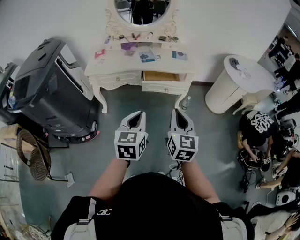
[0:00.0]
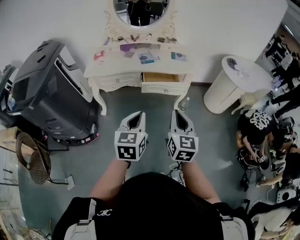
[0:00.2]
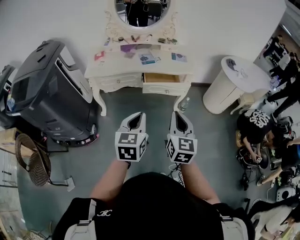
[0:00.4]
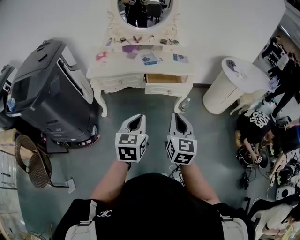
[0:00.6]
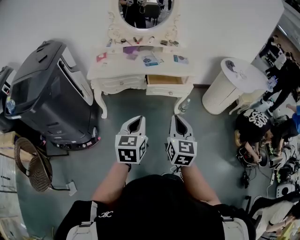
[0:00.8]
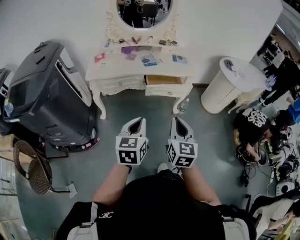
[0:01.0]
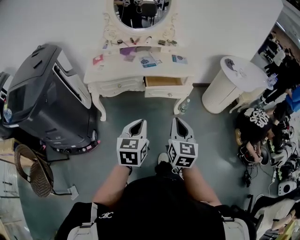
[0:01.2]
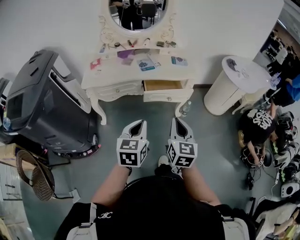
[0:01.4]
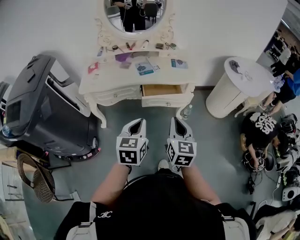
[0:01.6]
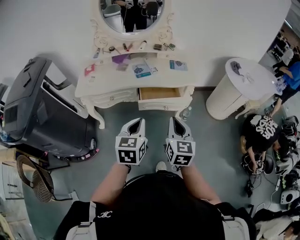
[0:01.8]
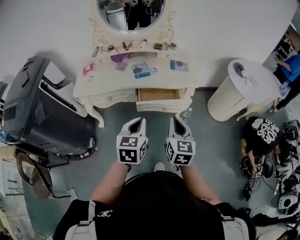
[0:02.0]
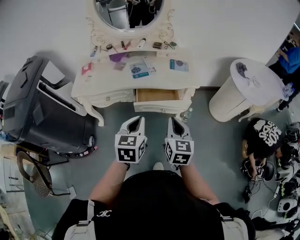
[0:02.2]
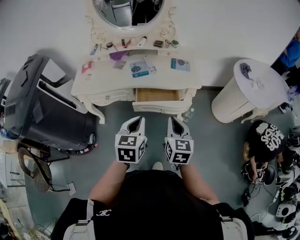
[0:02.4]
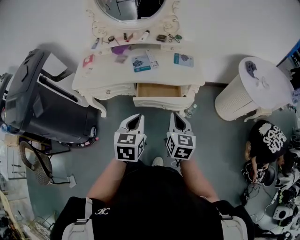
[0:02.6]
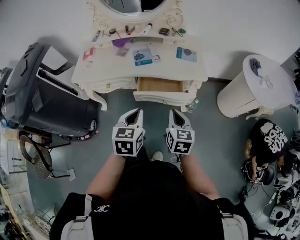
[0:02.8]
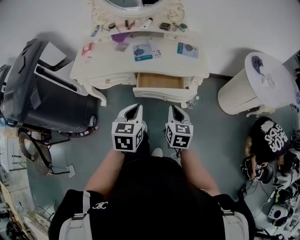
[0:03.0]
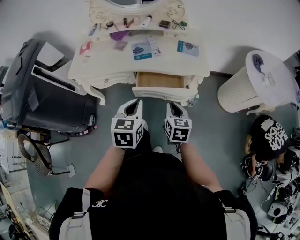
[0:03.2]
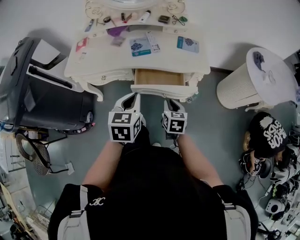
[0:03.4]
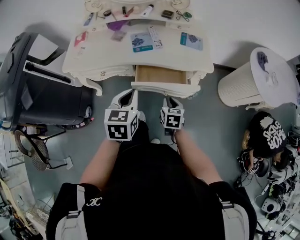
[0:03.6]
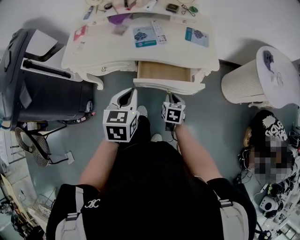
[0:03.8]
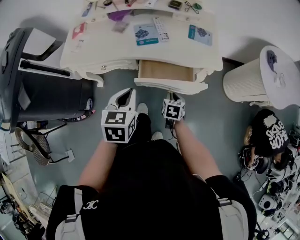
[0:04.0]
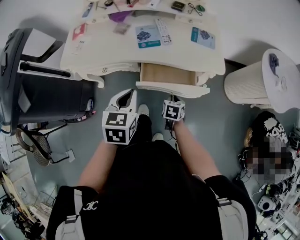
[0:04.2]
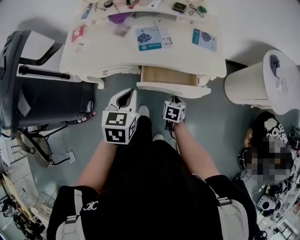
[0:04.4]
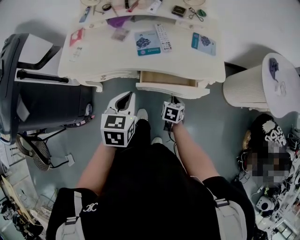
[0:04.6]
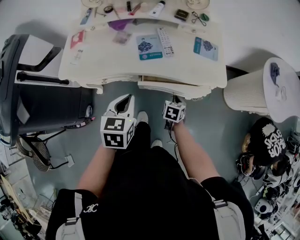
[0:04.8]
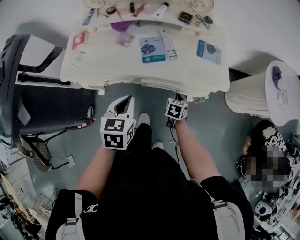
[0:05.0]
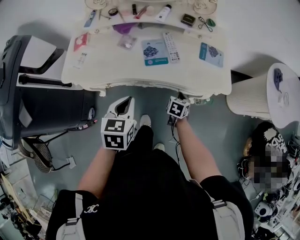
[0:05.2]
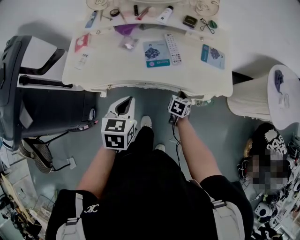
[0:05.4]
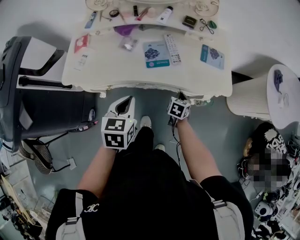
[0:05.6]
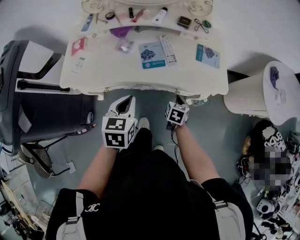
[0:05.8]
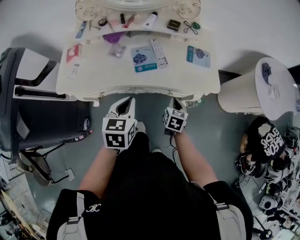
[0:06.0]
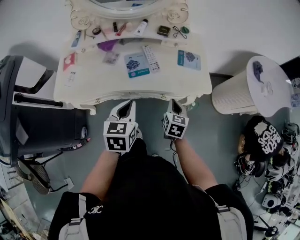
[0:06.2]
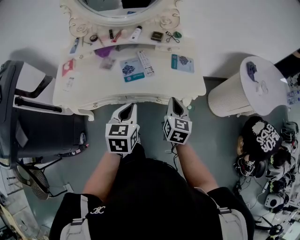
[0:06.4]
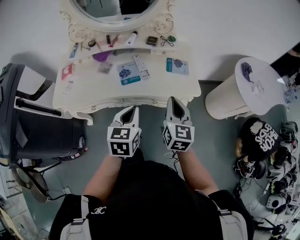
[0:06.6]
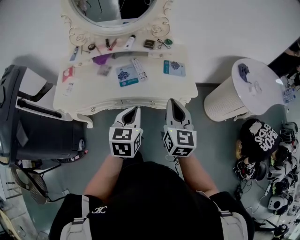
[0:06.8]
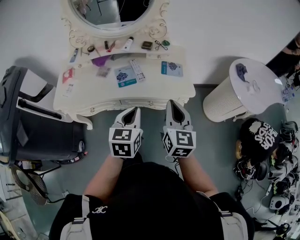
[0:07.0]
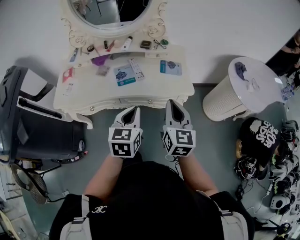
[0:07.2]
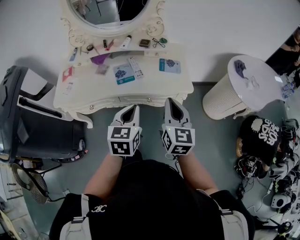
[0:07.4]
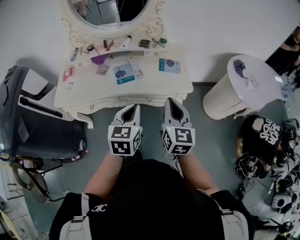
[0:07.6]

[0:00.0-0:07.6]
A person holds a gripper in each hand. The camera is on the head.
0.0 to 1.6 s: The two grippers go roughly 10 cm forward.
1.6 to 3.0 s: The left gripper moves forward and to the right, approximately 15 cm. The right gripper goes some 20 cm forward, downward and to the right, and rotates roughly 20 degrees.
3.0 to 4.6 s: The left gripper heads forward and to the left, covering some 15 cm, while the right gripper heads downward and forward, covering some 25 cm, and turns by roughly 30 degrees.
4.6 to 6.0 s: The right gripper is displaced upward and forward by roughly 10 cm, while the left gripper moves about 5 cm.
6.0 to 7.6 s: The left gripper moves to the right, upward and backward, approximately 15 cm. The right gripper is displaced upward by roughly 30 cm, and tips its fingers upward by about 30 degrees.

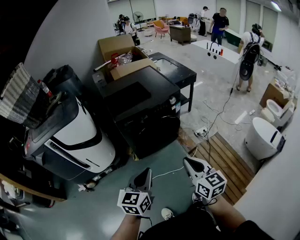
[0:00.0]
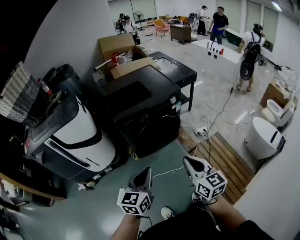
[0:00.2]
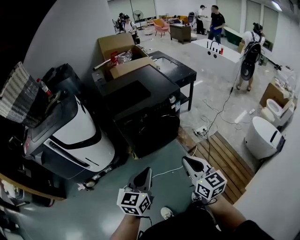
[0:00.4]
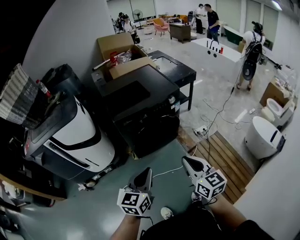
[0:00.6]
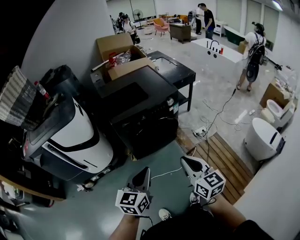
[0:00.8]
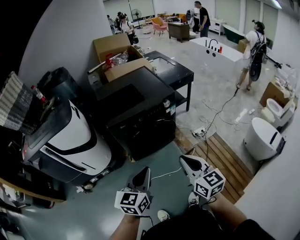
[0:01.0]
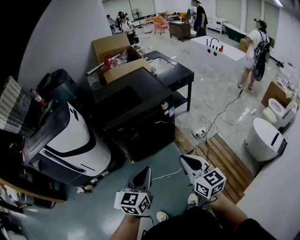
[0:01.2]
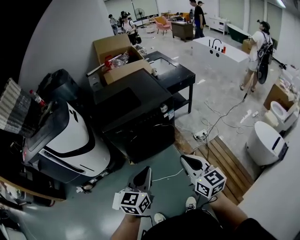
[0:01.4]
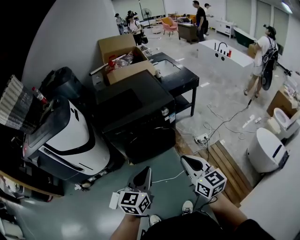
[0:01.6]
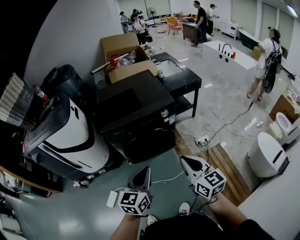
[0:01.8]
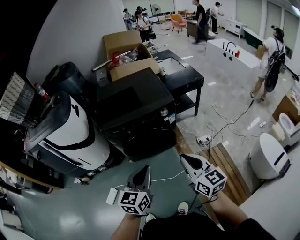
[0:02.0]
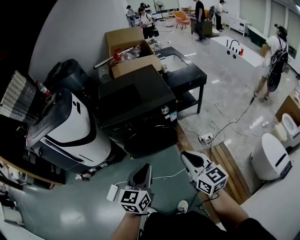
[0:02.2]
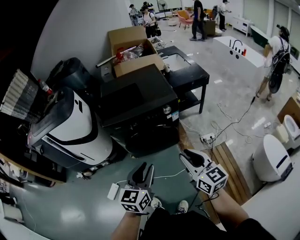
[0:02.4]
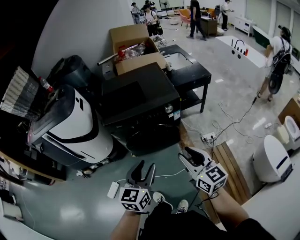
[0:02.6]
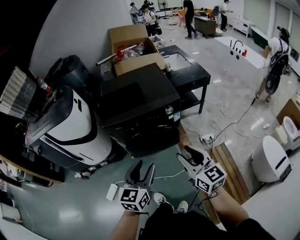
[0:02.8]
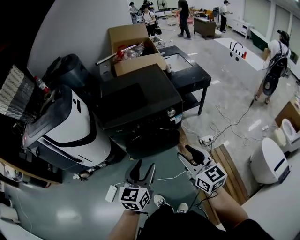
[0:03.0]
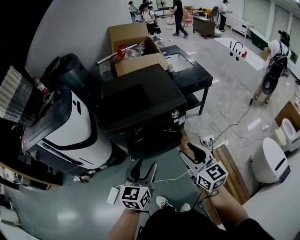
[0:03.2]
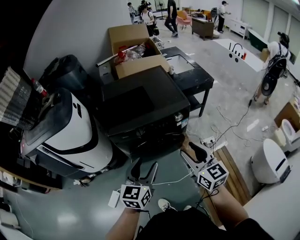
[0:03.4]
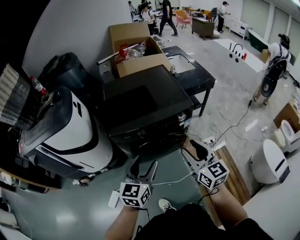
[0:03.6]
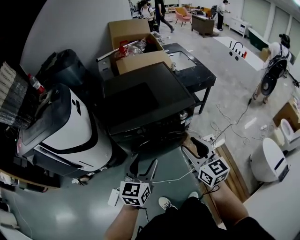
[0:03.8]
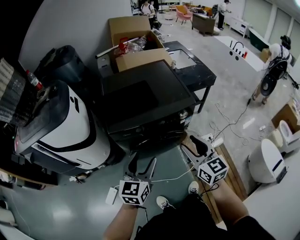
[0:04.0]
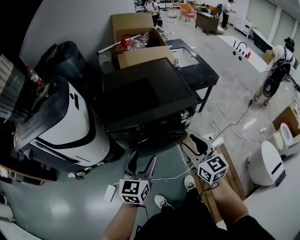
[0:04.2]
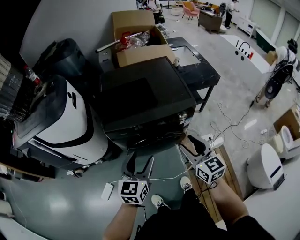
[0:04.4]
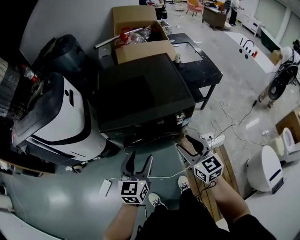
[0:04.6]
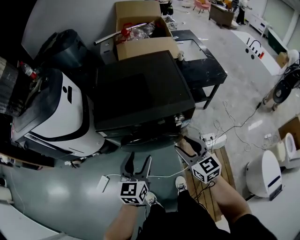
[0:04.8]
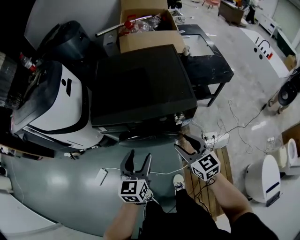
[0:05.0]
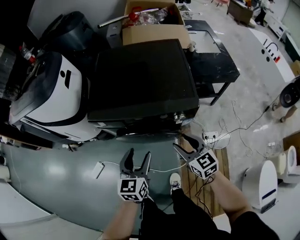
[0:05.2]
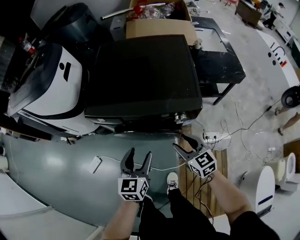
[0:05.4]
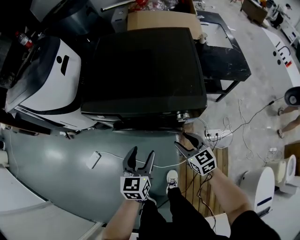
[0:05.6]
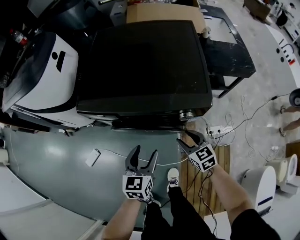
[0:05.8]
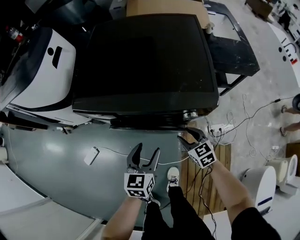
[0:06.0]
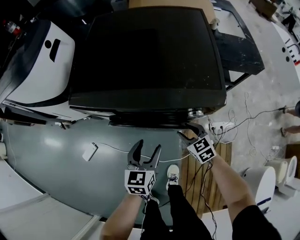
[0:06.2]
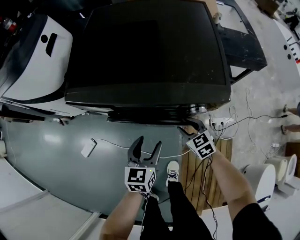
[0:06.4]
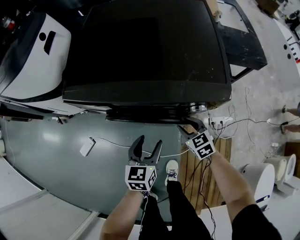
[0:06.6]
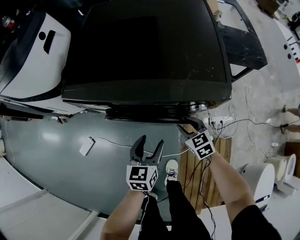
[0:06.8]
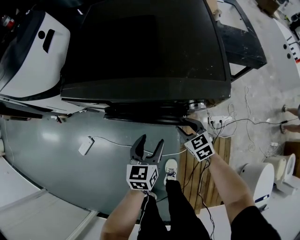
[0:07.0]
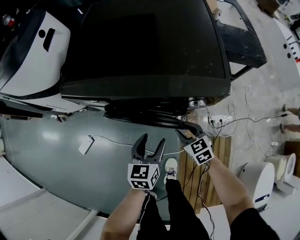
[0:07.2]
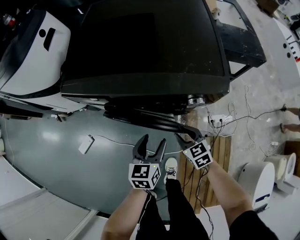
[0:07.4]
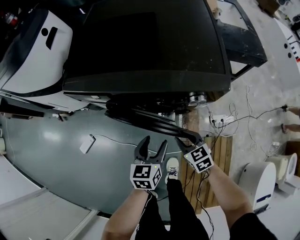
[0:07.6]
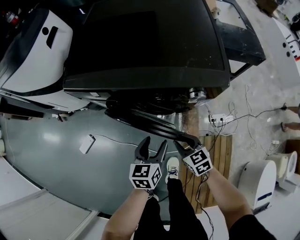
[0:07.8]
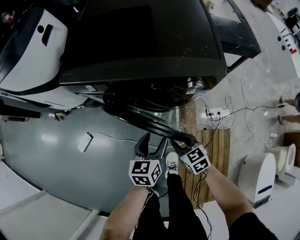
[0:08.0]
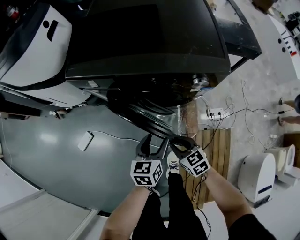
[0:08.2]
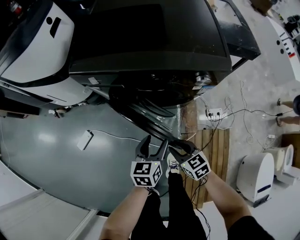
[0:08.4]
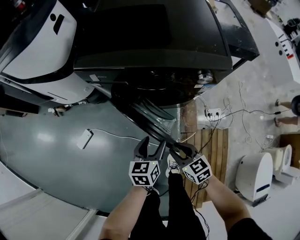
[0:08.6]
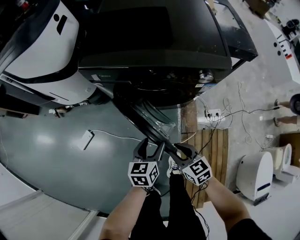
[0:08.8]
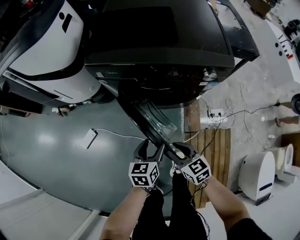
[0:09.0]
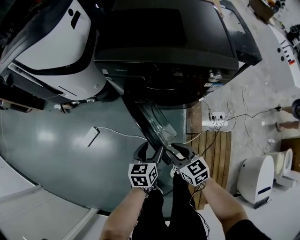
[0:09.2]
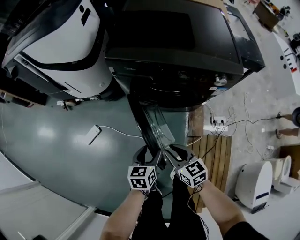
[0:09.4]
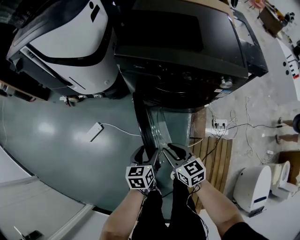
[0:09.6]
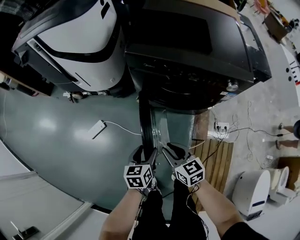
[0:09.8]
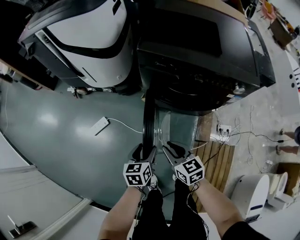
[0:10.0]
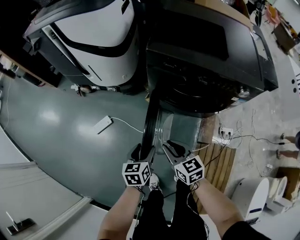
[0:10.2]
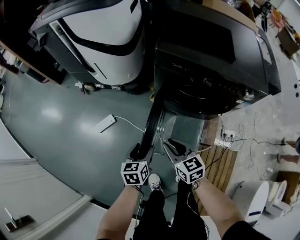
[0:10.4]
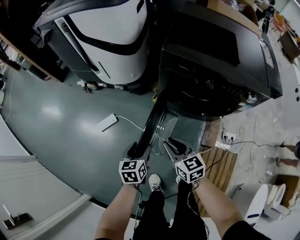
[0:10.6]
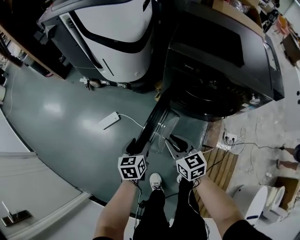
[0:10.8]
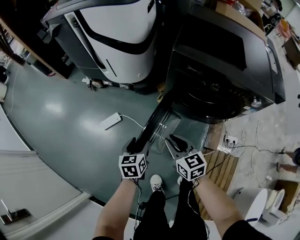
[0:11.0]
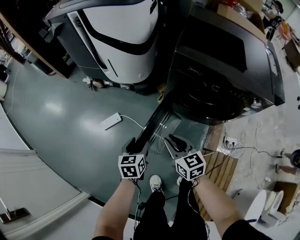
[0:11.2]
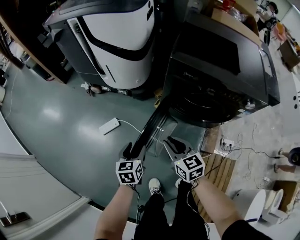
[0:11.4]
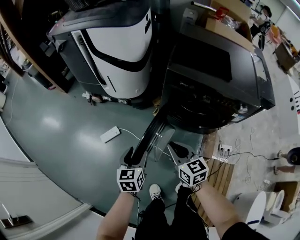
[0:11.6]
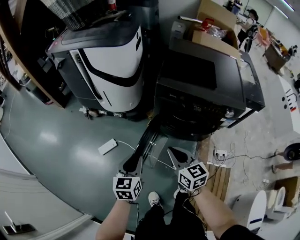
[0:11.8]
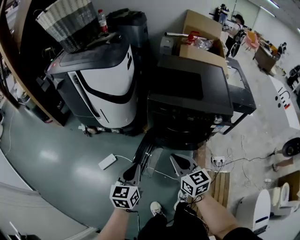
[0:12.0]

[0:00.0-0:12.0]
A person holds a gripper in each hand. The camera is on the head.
0.0 to 1.6 s: The grippers both shift to the right and forward by some 15 cm.
1.6 to 3.0 s: Both grippers travel together forward, about 10 cm. The right gripper opens up; the left gripper opens its fingers.
3.0 to 4.4 s: The left gripper heads forward and to the left, covering approximately 15 cm. Meanwhile the right gripper travels forward by about 15 cm.
4.4 to 6.0 s: The left gripper moves downward and to the right, some 25 cm, and rotates about 20 degrees; the right gripper shifts approximately 35 cm downward and forward, and turns by approximately 40 degrees.
6.0 to 7.6 s: The right gripper travels backward and downward by about 10 cm; the left gripper is displaced downward by roughly 10 cm.
7.6 to 9.0 s: Both grippers move to the left and backward, some 15 cm.
9.0 to 10.4 s: Both grippers travel together to the left, roughly 20 cm.
10.4 to 12.0 s: The two grippers go roughly 25 cm upward. The left gripper rotates approximately 20 degrees, and closes its fingers.

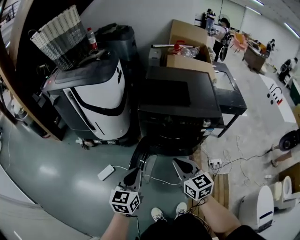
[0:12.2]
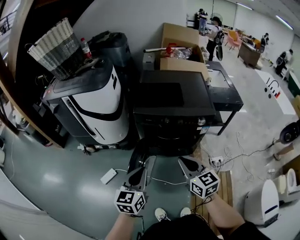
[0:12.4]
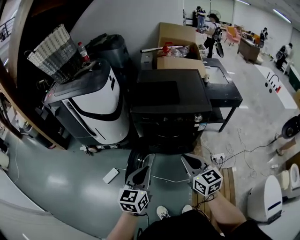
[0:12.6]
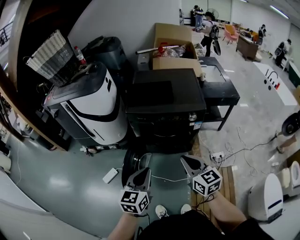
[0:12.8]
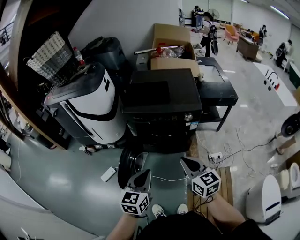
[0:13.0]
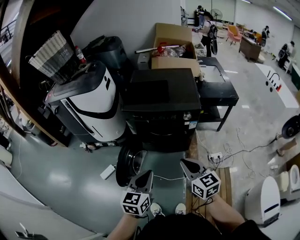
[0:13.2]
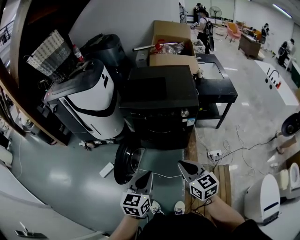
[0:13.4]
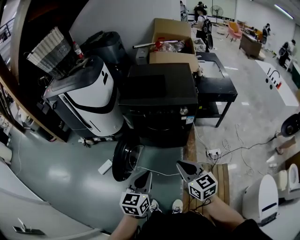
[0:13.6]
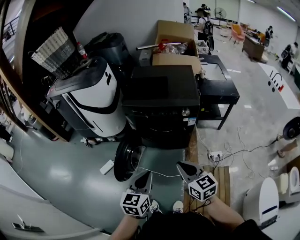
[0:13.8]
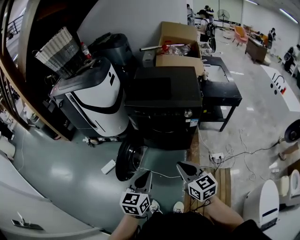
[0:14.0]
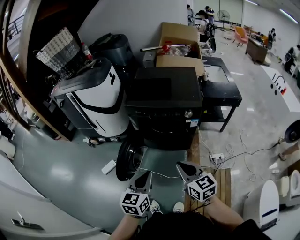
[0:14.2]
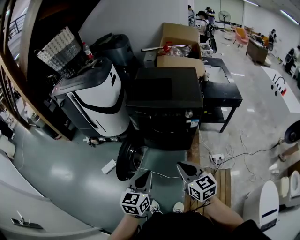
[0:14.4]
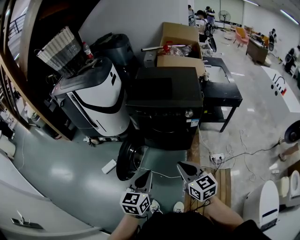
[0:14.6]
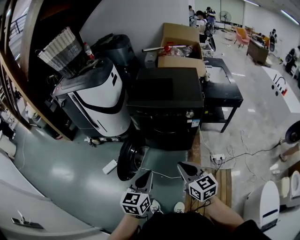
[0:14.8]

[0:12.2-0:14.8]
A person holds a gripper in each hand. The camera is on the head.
12.2 to 13.4 s: Both grippers move to the right and backward, about 25 cm.
13.4 to 14.8 s: There are only small adjustments of the grippers.

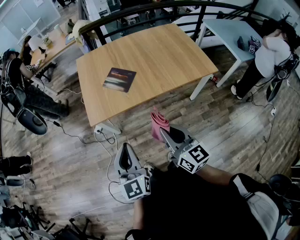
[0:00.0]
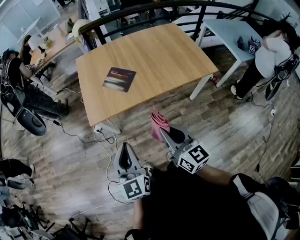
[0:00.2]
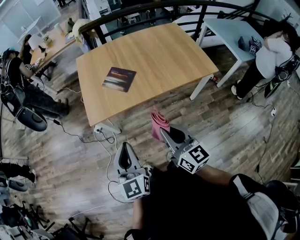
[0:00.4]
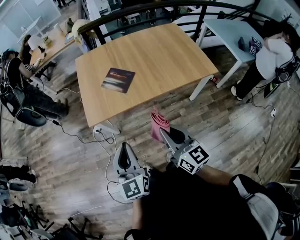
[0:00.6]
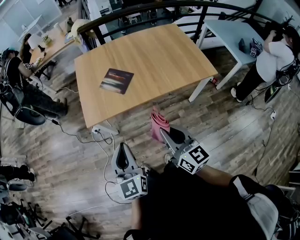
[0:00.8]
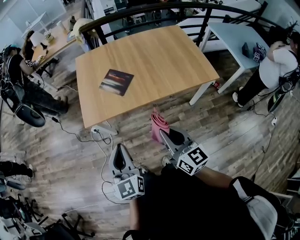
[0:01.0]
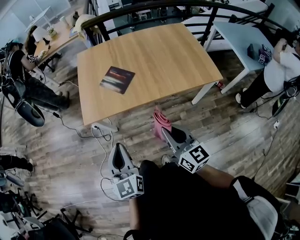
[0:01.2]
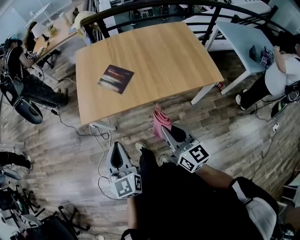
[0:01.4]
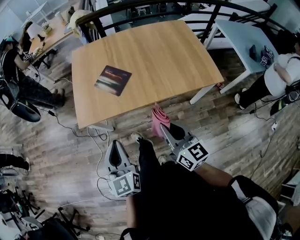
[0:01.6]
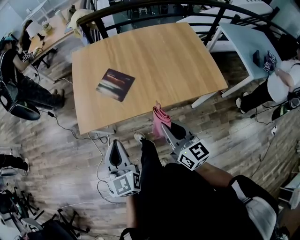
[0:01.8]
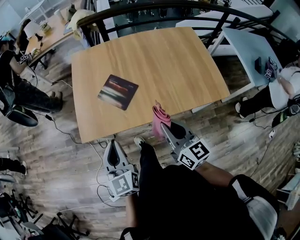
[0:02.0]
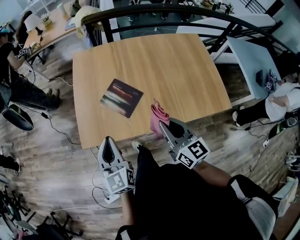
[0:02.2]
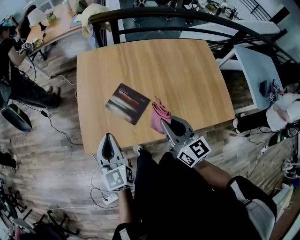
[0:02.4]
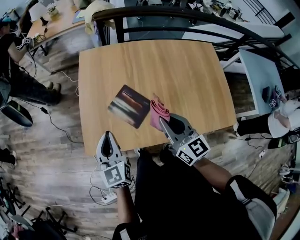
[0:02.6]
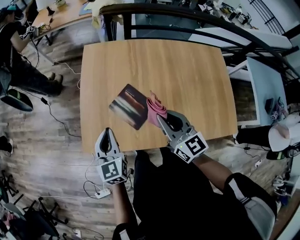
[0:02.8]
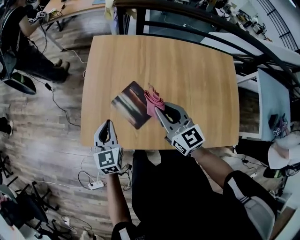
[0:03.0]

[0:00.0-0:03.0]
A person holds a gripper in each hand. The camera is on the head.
0.0 to 1.6 s: The left gripper is displaced forward and to the right by about 10 cm. The right gripper travels to the right and forward by about 15 cm.
1.6 to 3.0 s: Both grippers travel together forward, roughly 40 cm. The right gripper changes its angle by approximately 30 degrees.
